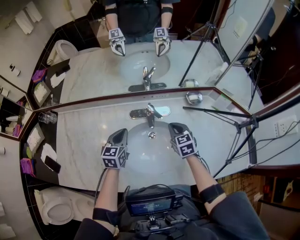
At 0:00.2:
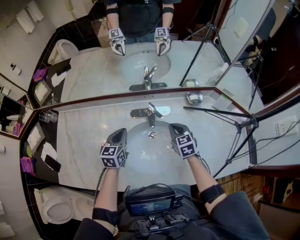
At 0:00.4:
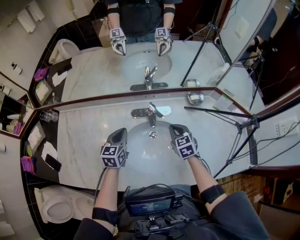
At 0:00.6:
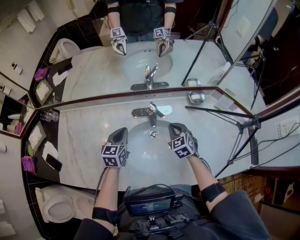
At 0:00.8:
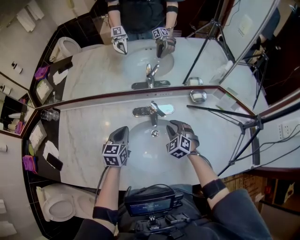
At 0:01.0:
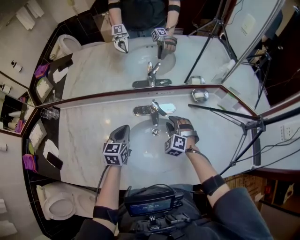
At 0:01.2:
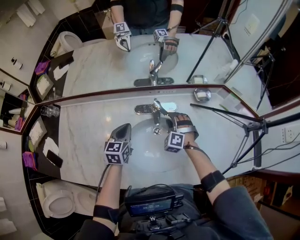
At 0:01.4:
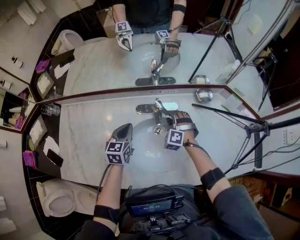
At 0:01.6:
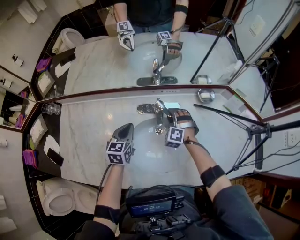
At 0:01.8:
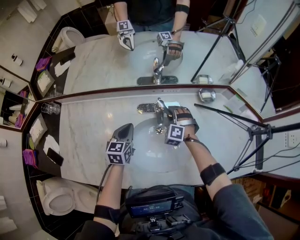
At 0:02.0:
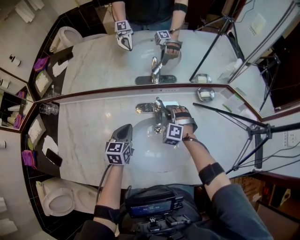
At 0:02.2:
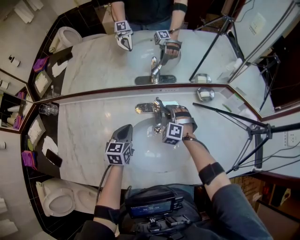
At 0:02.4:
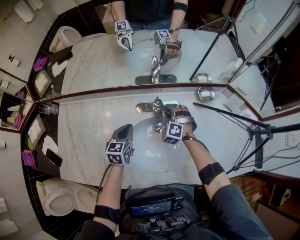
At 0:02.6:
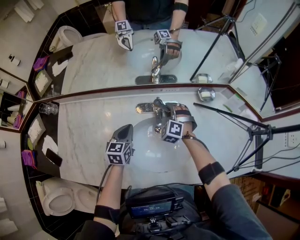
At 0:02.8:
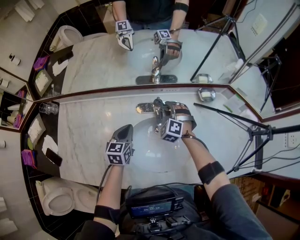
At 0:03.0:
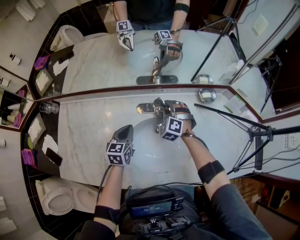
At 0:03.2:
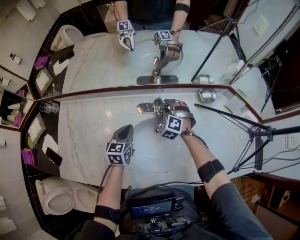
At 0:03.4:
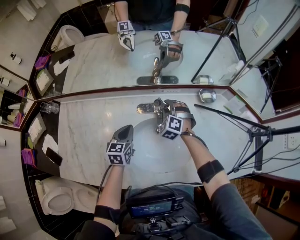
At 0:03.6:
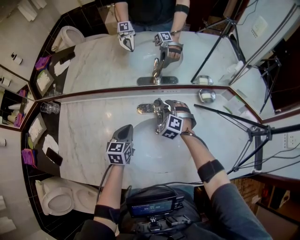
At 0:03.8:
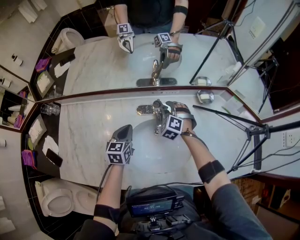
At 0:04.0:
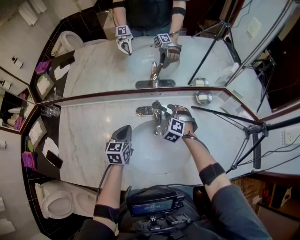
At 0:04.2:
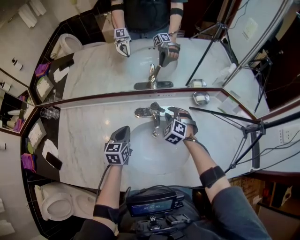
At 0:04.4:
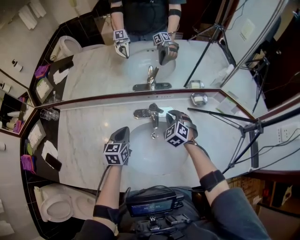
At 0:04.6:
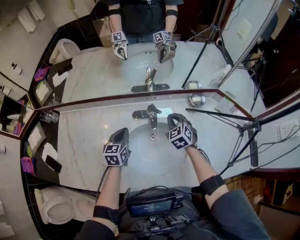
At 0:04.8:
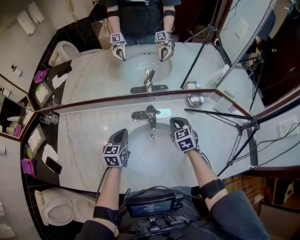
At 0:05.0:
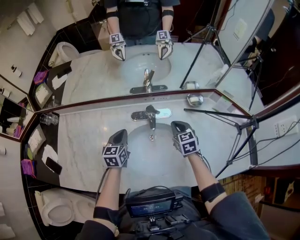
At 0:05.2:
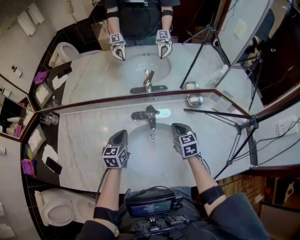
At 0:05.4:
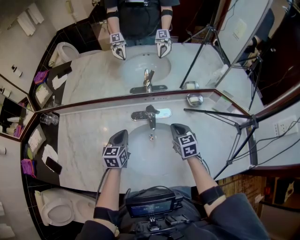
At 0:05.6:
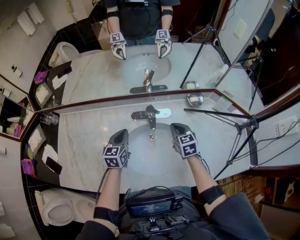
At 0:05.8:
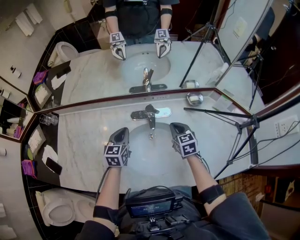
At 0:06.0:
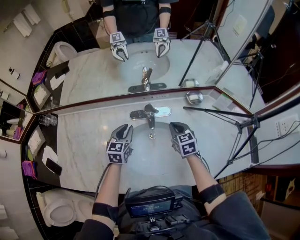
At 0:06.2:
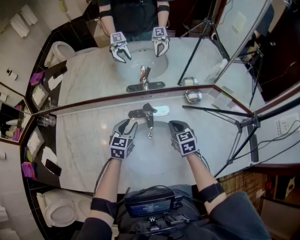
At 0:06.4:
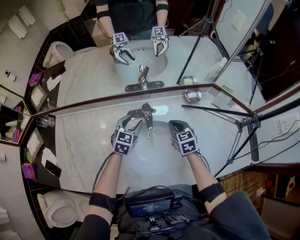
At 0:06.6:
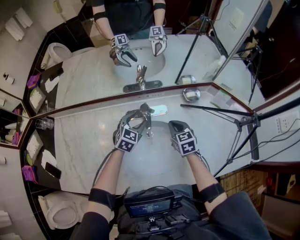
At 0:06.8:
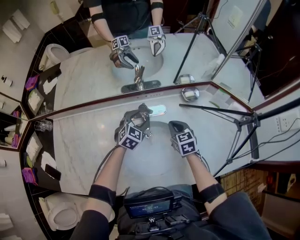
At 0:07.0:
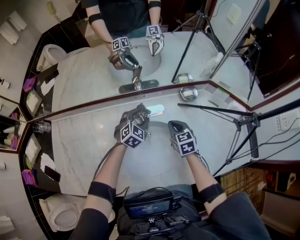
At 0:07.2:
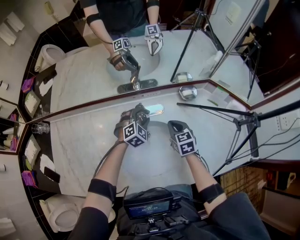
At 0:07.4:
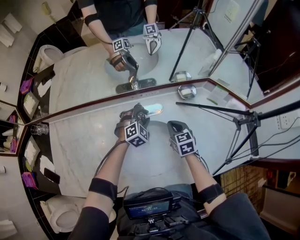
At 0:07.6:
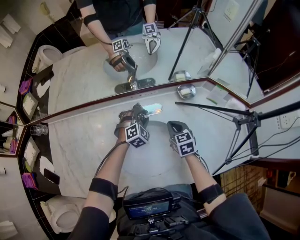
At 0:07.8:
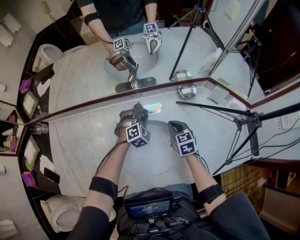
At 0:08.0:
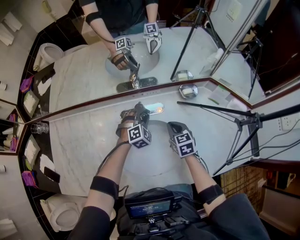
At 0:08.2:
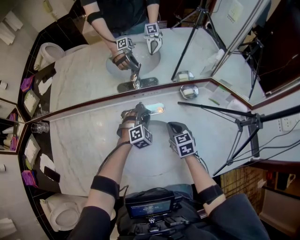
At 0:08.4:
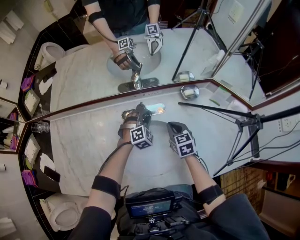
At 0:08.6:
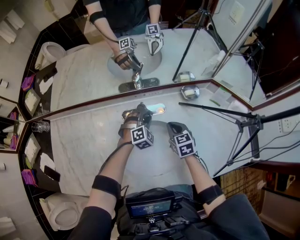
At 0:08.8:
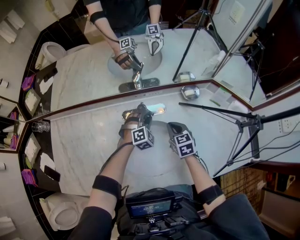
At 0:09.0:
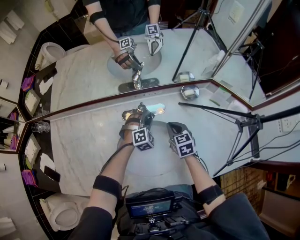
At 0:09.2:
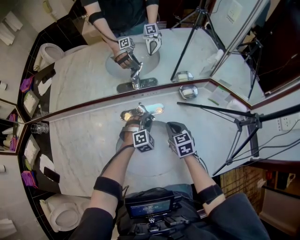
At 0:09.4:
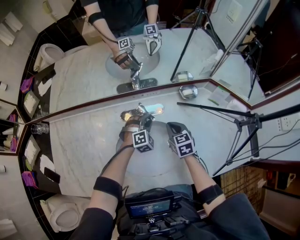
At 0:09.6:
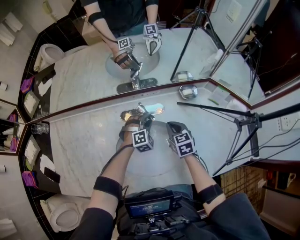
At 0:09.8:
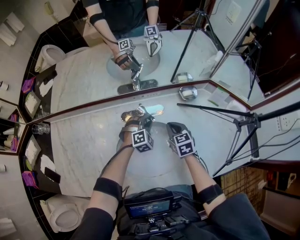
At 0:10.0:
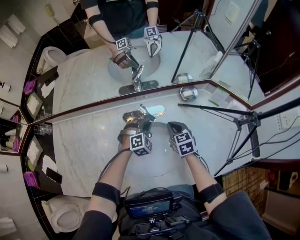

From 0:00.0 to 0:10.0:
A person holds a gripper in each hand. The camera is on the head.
From 0:00.0 to 0:01.4: The right gripper moves downward, some 5 cm, rolls counterclockwise, seen from behind, by roughly 60 degrees, and opens.
From 0:01.4 to 0:02.8: The right gripper changes place by about 5 cm.
From 0:02.8 to 0:04.2: There are only small adjustments of the grippers.
From 0:04.2 to 0:05.8: The right gripper heads backward and to the right, covering approximately 10 cm, rolls clockwise, seen from behind, by approximately 50 degrees, and closes its fingers.
From 0:05.8 to 0:07.2: The left gripper travels to the right, forward and downward by approximately 20 cm, rotates around the line of its fingers by approximately 50 degrees, clockwise from behind, and opens its fingers; the right gripper changes place by approximately 5 cm.
From 0:07.2 to 0:08.6: The left gripper closes its fingers.
From 0:08.6 to 0:10.0: The grippers make only small movements.

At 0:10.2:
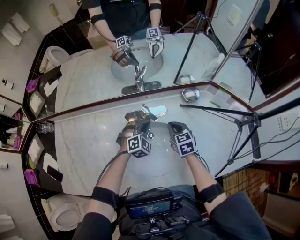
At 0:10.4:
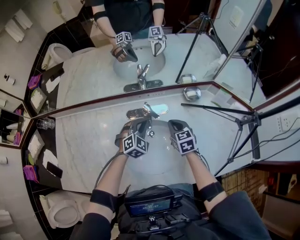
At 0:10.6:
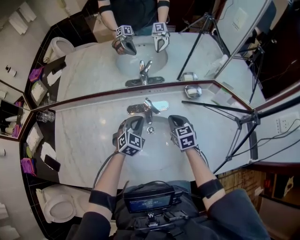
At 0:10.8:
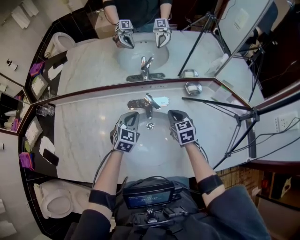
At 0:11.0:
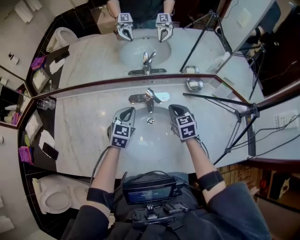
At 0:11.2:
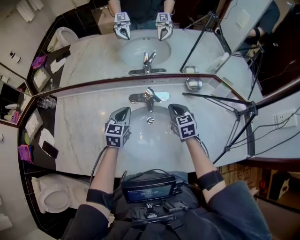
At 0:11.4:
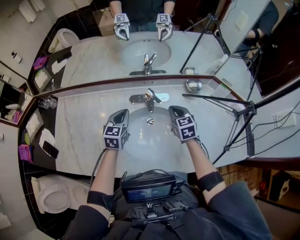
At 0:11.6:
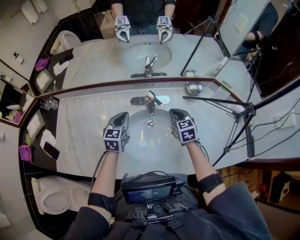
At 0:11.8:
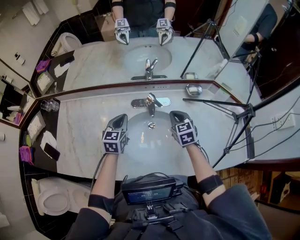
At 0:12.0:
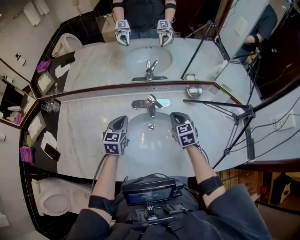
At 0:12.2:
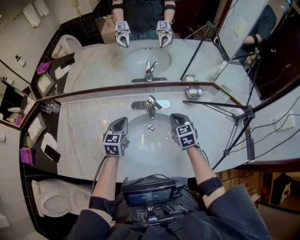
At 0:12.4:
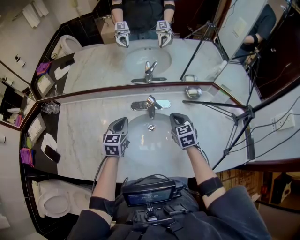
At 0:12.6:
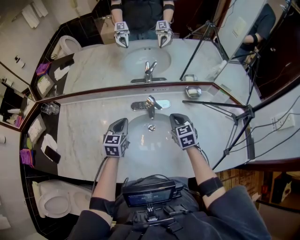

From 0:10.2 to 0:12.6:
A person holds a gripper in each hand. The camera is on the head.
From 0:10.2 to 0:11.4: The right gripper ends up roughly 5 cm from where it was; the left gripper is displaced to the left and upward by about 15 cm, and rotates around the line of its fingers by about 60 degrees, counterclockwise from behind.
From 0:11.4 to 0:12.6: The grippers stay close to where they were, moving slightly.

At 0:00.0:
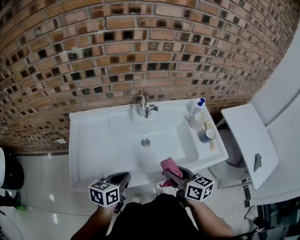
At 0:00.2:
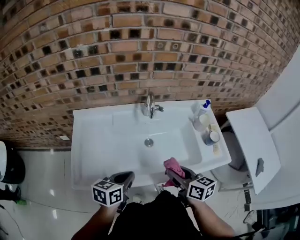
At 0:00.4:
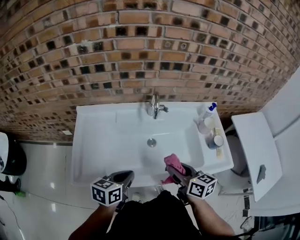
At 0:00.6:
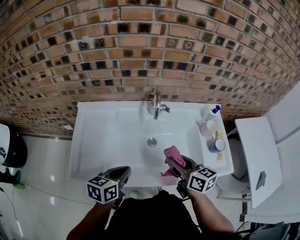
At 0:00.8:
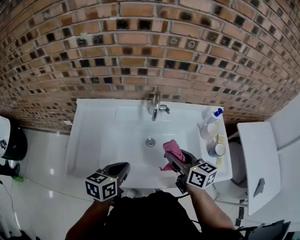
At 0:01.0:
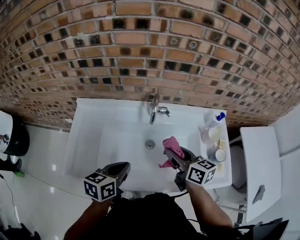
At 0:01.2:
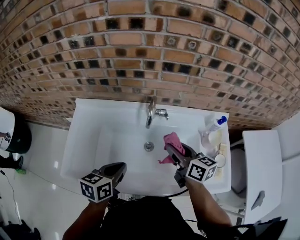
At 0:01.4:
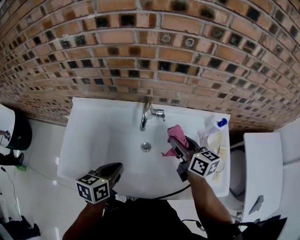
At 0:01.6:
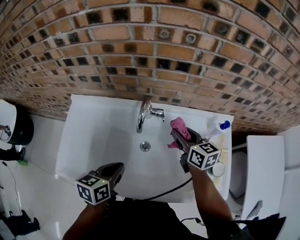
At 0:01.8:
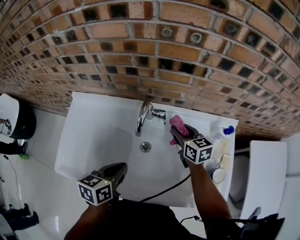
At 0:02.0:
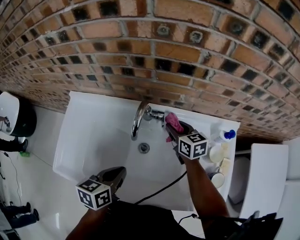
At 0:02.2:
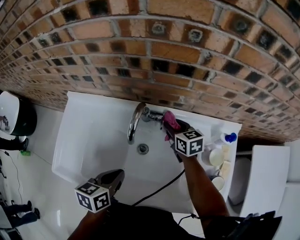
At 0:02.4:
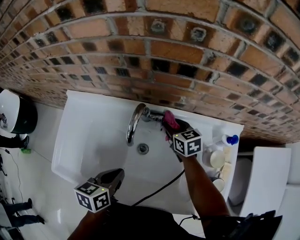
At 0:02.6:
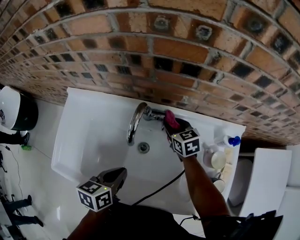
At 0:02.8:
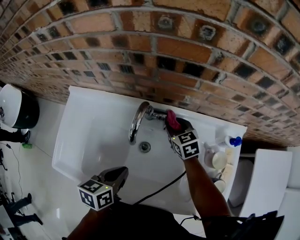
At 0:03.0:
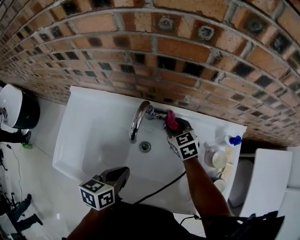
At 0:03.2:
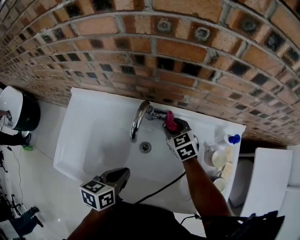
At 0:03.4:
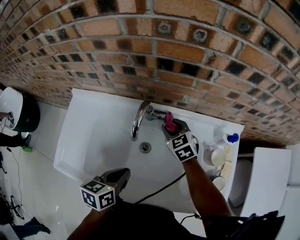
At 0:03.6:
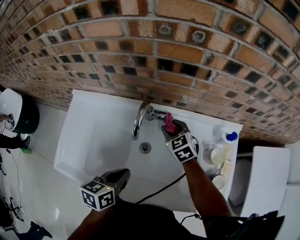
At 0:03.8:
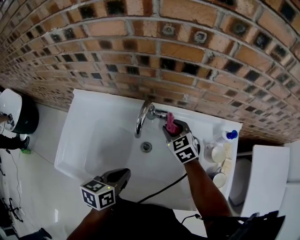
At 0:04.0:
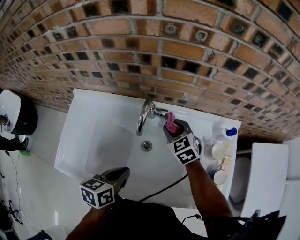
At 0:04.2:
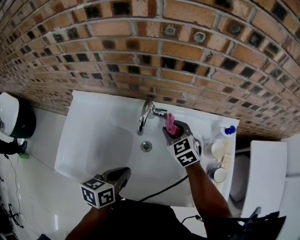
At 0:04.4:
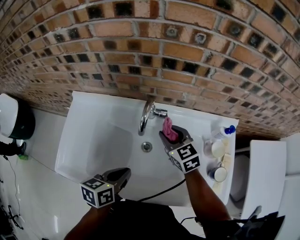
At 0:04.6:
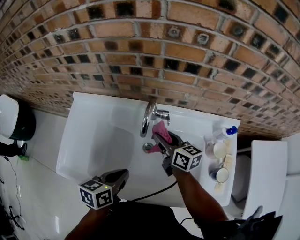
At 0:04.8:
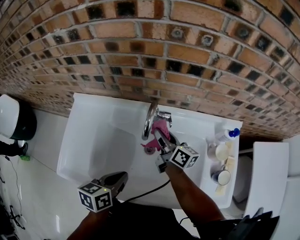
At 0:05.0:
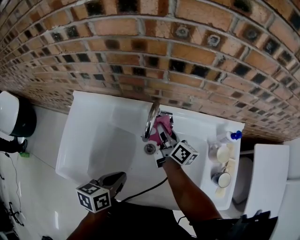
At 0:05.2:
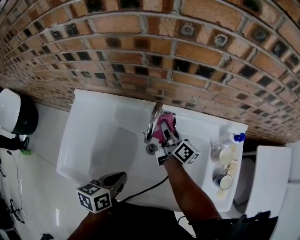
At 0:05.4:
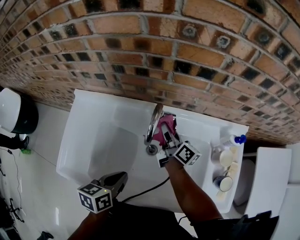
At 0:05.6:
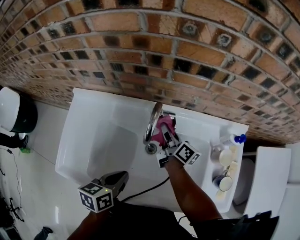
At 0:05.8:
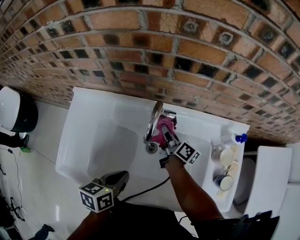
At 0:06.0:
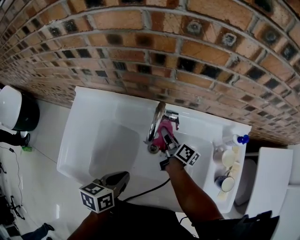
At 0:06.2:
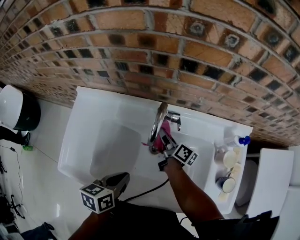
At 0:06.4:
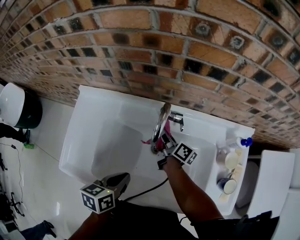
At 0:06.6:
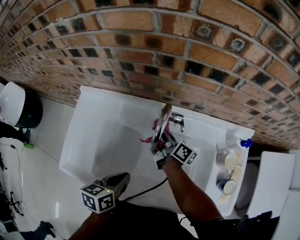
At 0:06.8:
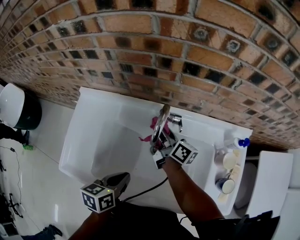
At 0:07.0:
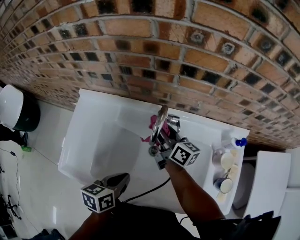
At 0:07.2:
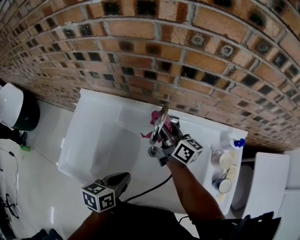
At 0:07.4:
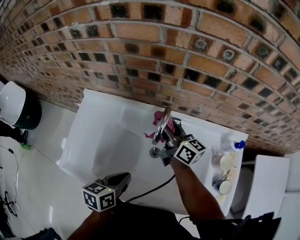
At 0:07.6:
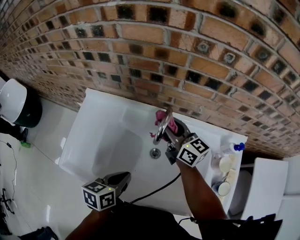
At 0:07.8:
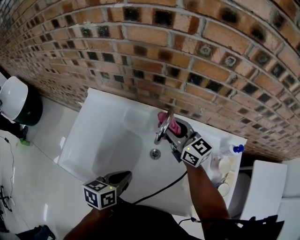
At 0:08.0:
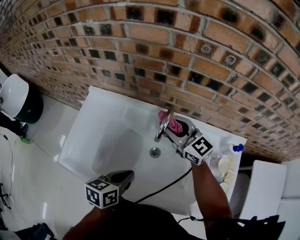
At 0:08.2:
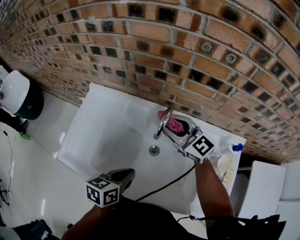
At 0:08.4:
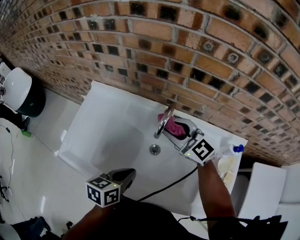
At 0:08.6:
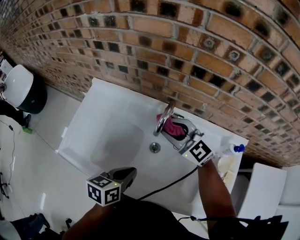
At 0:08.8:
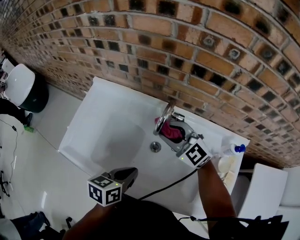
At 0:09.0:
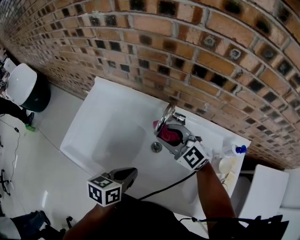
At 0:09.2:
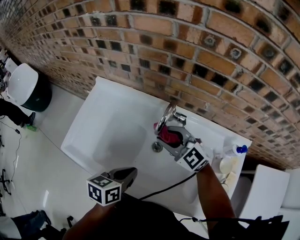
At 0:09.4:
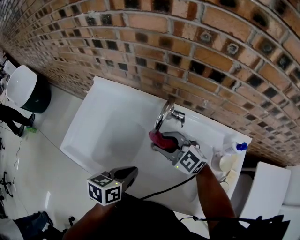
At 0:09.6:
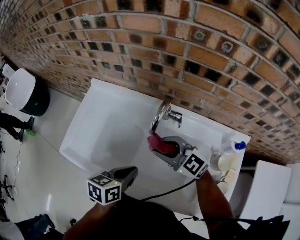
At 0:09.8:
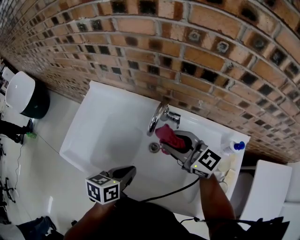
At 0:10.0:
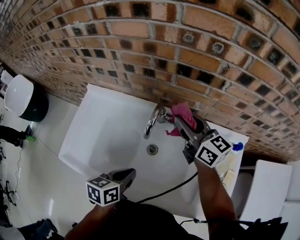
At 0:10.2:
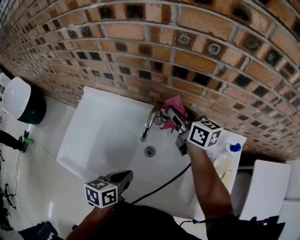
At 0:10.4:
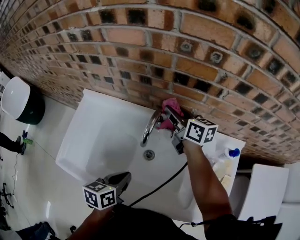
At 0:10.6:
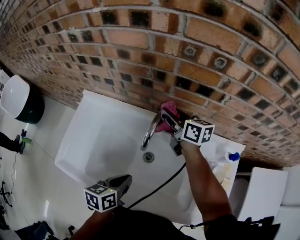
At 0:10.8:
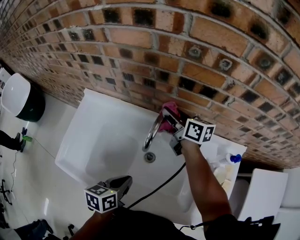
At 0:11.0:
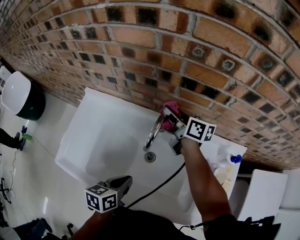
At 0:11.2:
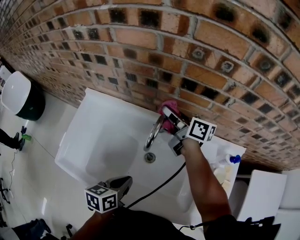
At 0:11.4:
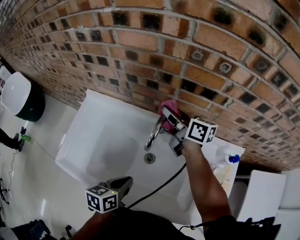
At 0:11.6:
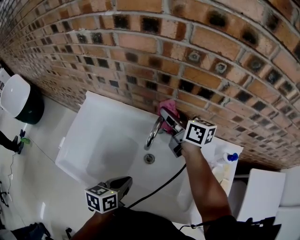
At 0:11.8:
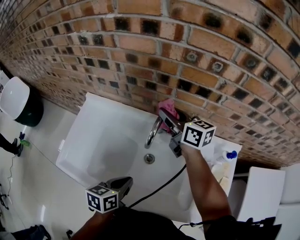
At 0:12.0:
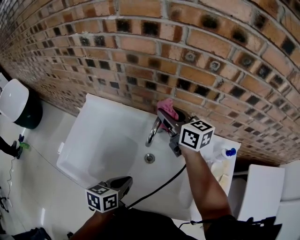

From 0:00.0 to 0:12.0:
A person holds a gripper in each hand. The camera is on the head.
From 0:00.0 to 0:01.6: The left gripper moves forward and to the right, about 15 cm; the right gripper travels forward by approximately 30 cm.
From 0:01.6 to 0:03.0: The right gripper goes roughly 15 cm downward and forward, and rotates approximately 30 degrees. The left gripper changes place by about 5 cm.
From 0:03.0 to 0:04.4: The right gripper heads upward and backward, covering approximately 10 cm.
From 0:04.4 to 0:06.0: The right gripper goes approximately 10 cm downward, and rolls clockwise, seen from behind, by about 70 degrees.
From 0:06.0 to 0:07.6: The right gripper shifts approximately 20 cm upward, and rotates around the line of its fingers by some 50 degrees, counterclockwise from behind.
From 0:07.6 to 0:09.0: The right gripper goes approximately 10 cm backward, and twists approximately 50 degrees counterclockwise, seen from behind.
From 0:09.0 to 0:10.4: The right gripper shifts roughly 20 cm forward and to the right, and twists roughly 60 degrees clockwise, seen from behind.
From 0:10.4 to 0:12.0: The right gripper shifts about 5 cm upward.
